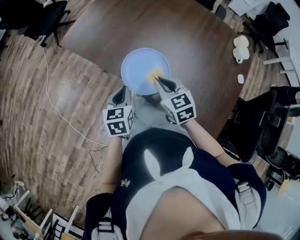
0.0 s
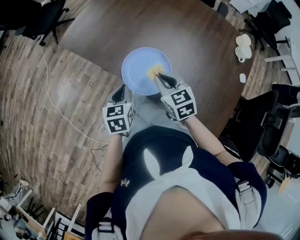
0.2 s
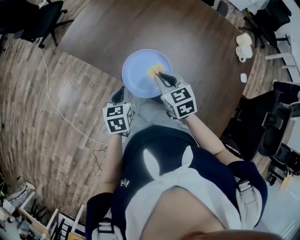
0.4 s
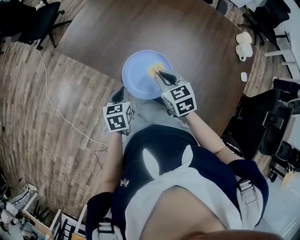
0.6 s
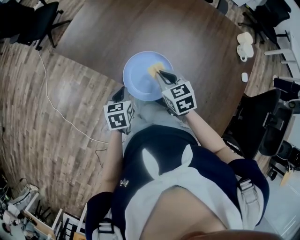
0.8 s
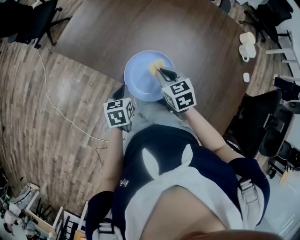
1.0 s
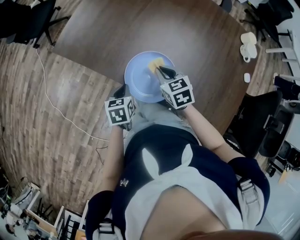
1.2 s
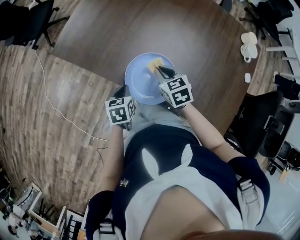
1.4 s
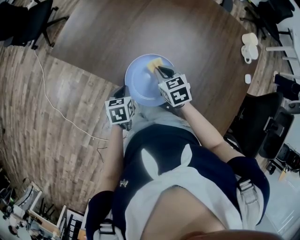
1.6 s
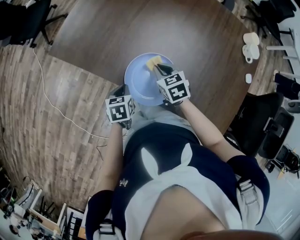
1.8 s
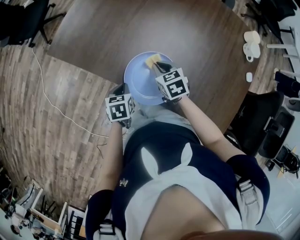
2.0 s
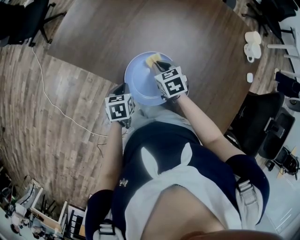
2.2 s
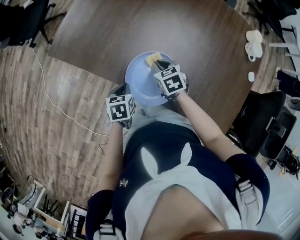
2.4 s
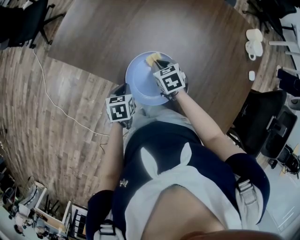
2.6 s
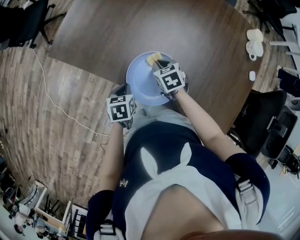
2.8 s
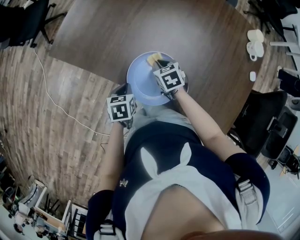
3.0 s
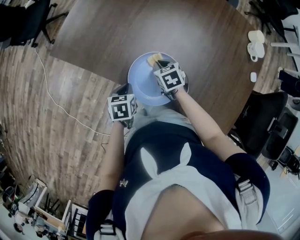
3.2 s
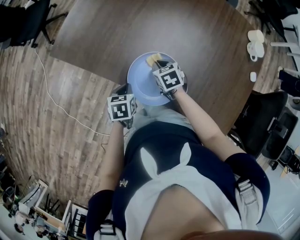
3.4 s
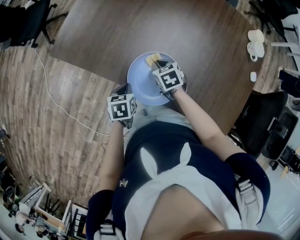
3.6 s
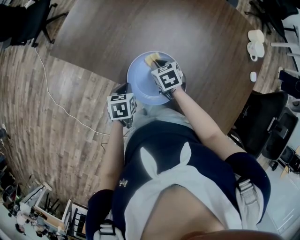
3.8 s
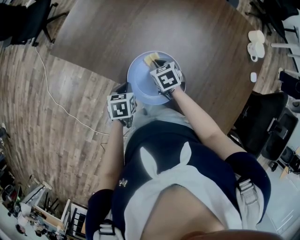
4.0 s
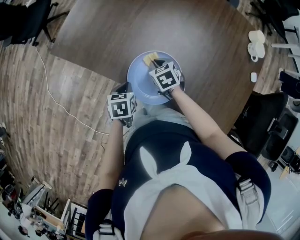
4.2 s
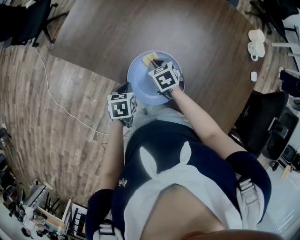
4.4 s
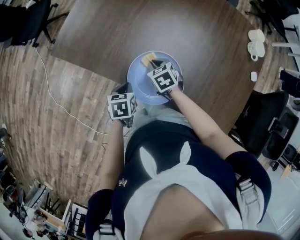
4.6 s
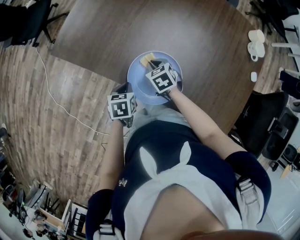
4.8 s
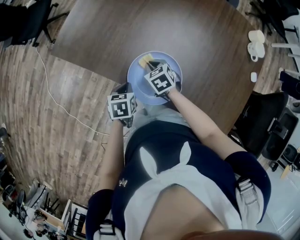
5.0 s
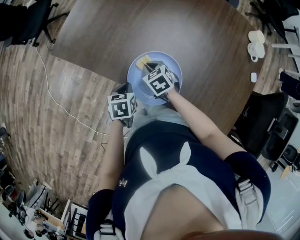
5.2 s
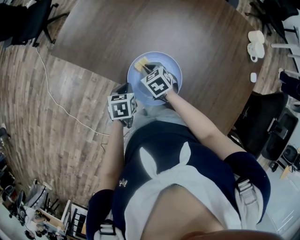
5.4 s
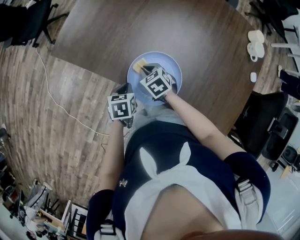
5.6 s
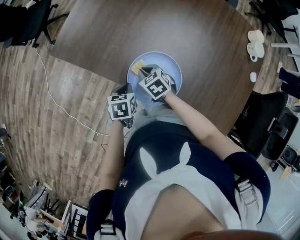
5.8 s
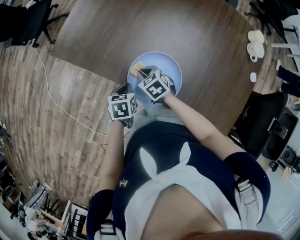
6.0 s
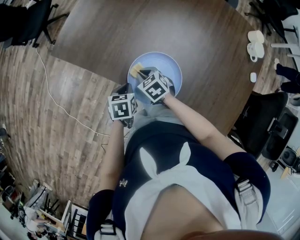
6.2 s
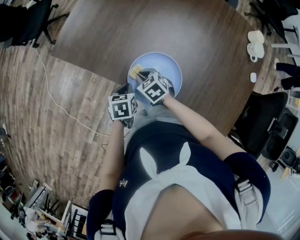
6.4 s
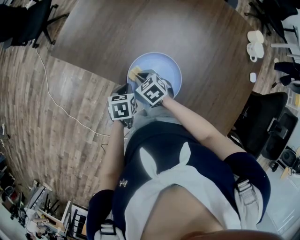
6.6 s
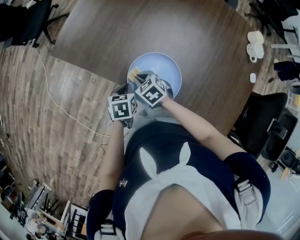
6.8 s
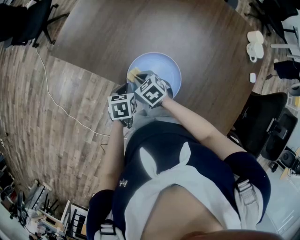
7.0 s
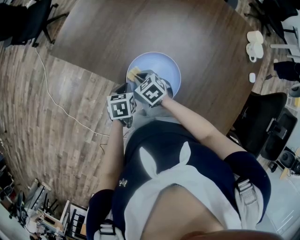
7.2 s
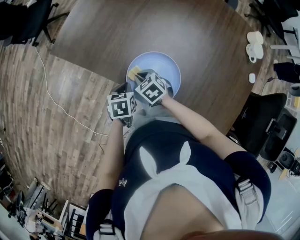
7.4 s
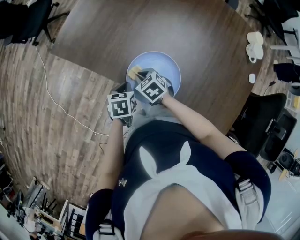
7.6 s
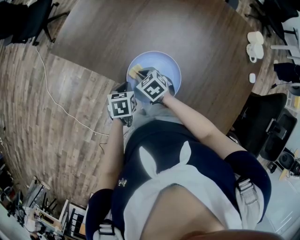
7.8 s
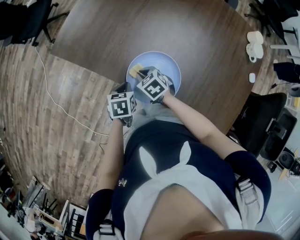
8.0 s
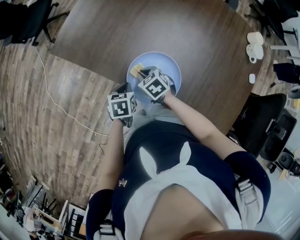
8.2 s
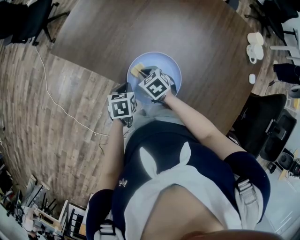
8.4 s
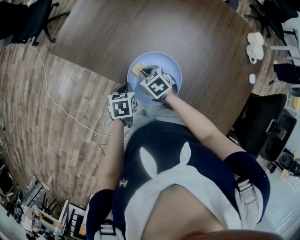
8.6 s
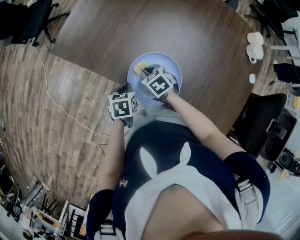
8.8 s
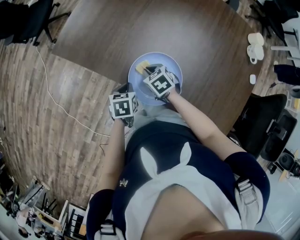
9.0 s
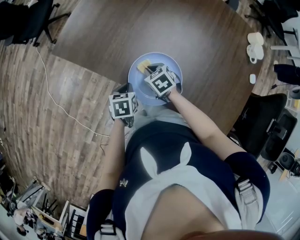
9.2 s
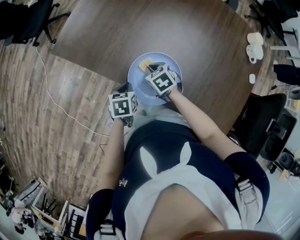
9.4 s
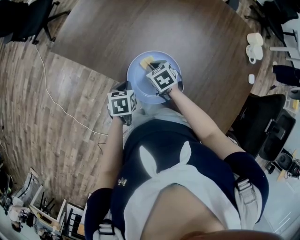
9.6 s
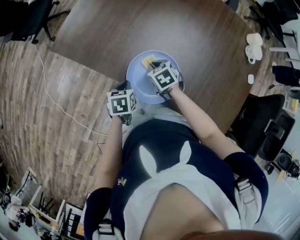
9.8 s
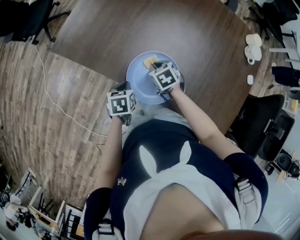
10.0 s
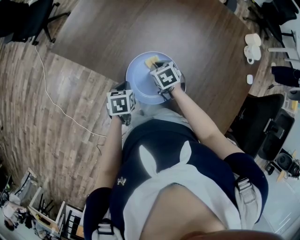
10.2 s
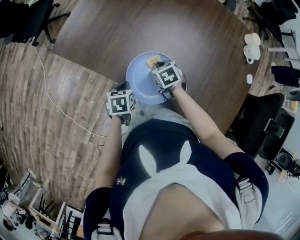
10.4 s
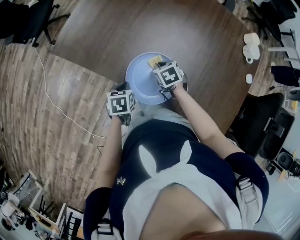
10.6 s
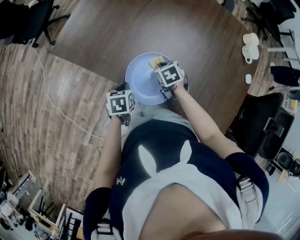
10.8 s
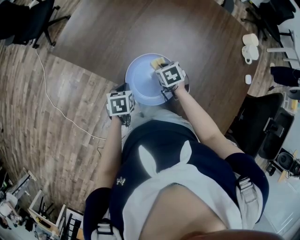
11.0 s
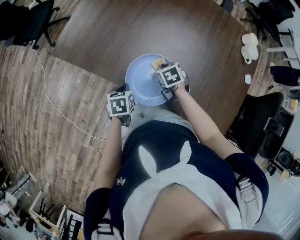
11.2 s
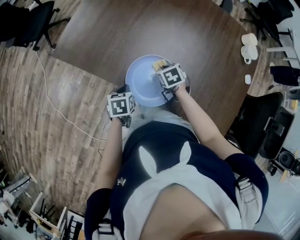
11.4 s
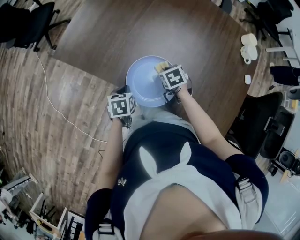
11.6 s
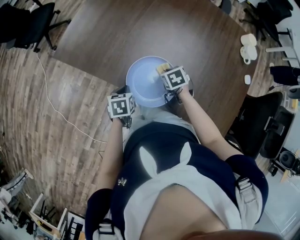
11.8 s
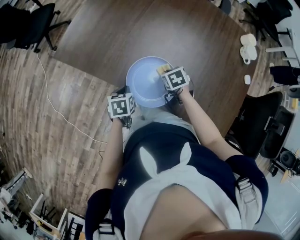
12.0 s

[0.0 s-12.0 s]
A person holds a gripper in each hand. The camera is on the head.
0.0 to 1.6 s: The right gripper moves forward and downward, approximately 15 cm. The left gripper heads downward and forward, covering some 15 cm.
1.6 to 3.0 s: The right gripper goes about 5 cm downward.
3.0 to 4.4 s: There are only small adjustments of the grippers.
4.4 to 6.0 s: The right gripper shifts roughly 5 cm to the left.
6.0 to 9.0 s: The grippers make only small movements.
9.0 to 10.4 s: The right gripper is displaced to the right by roughly 5 cm.
10.4 to 12.0 s: The right gripper moves to the right, about 5 cm.

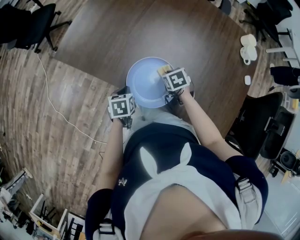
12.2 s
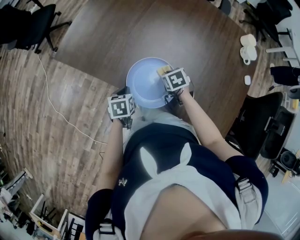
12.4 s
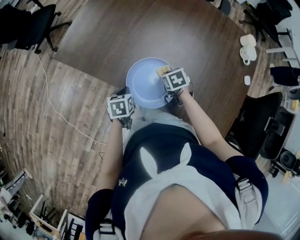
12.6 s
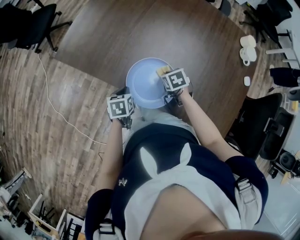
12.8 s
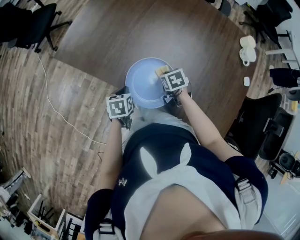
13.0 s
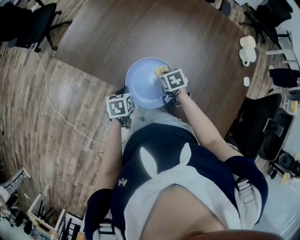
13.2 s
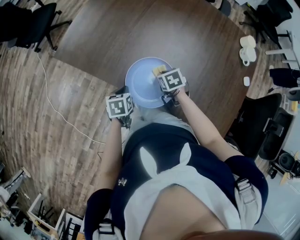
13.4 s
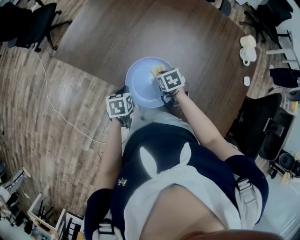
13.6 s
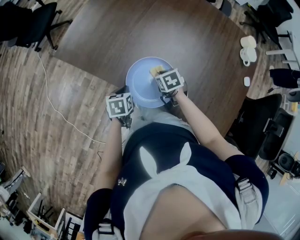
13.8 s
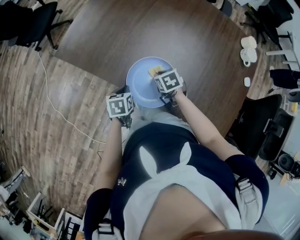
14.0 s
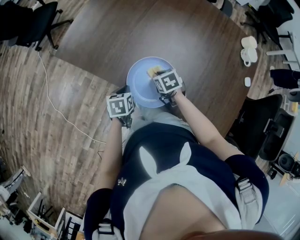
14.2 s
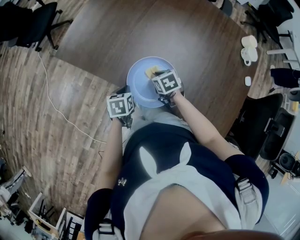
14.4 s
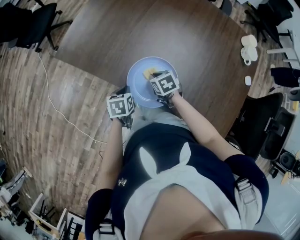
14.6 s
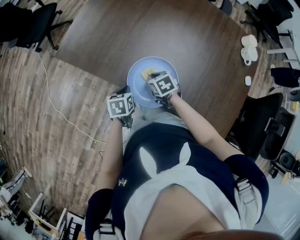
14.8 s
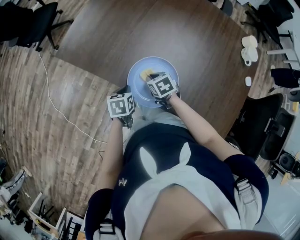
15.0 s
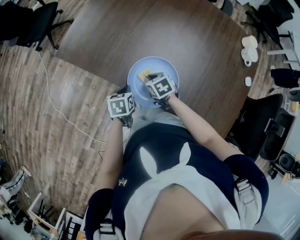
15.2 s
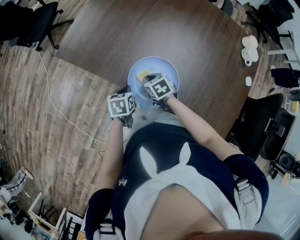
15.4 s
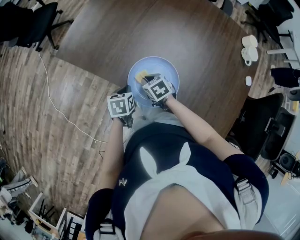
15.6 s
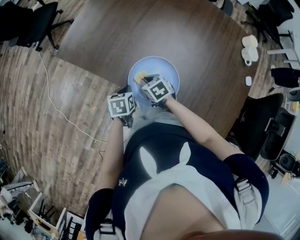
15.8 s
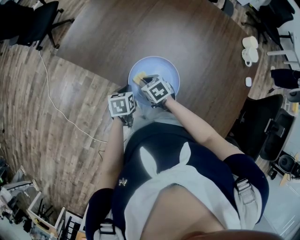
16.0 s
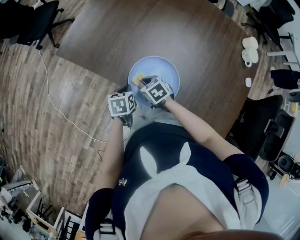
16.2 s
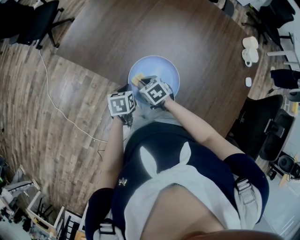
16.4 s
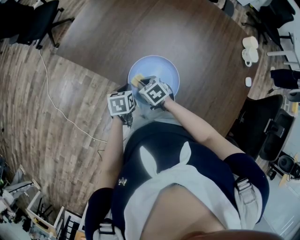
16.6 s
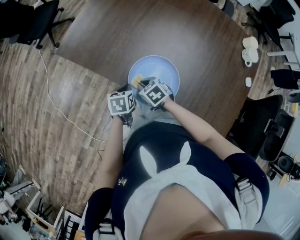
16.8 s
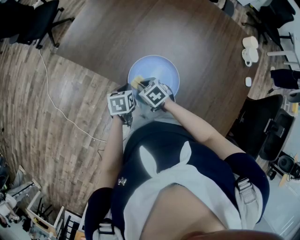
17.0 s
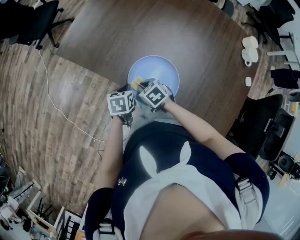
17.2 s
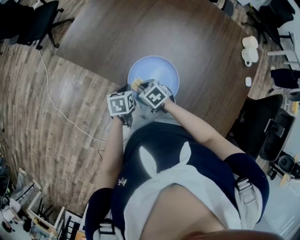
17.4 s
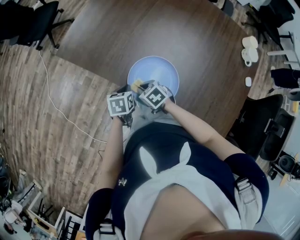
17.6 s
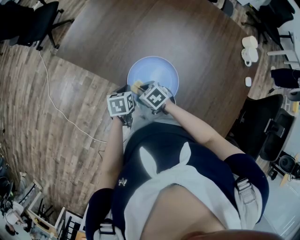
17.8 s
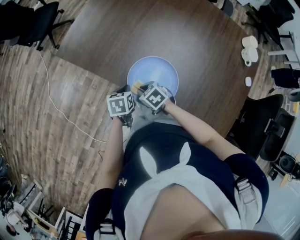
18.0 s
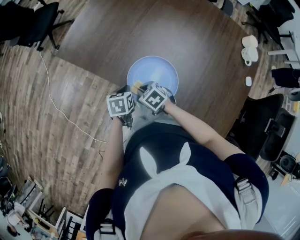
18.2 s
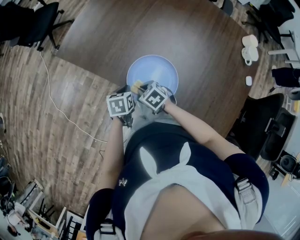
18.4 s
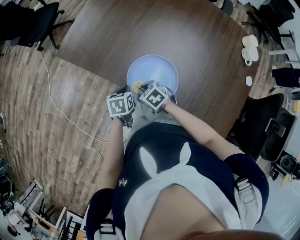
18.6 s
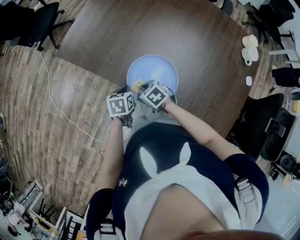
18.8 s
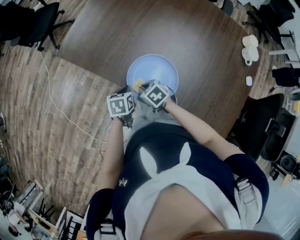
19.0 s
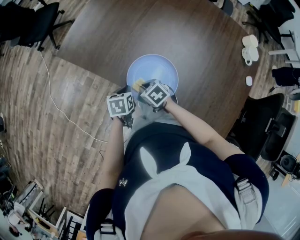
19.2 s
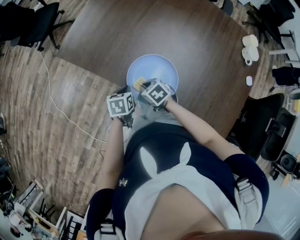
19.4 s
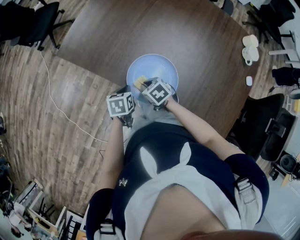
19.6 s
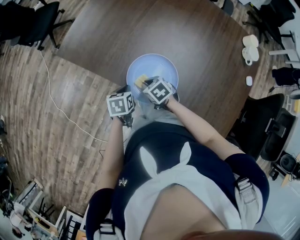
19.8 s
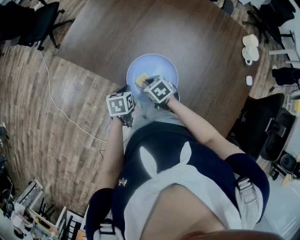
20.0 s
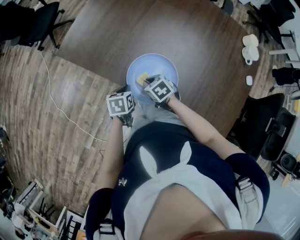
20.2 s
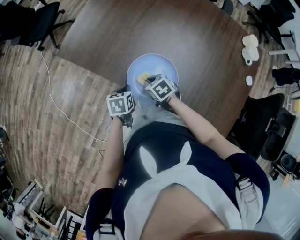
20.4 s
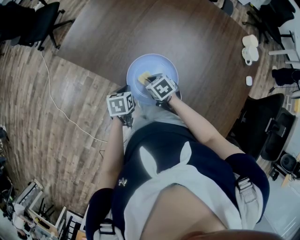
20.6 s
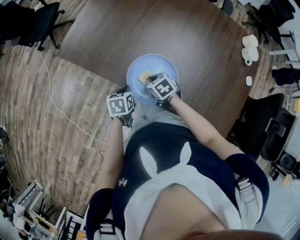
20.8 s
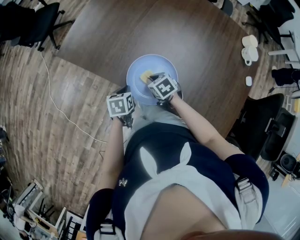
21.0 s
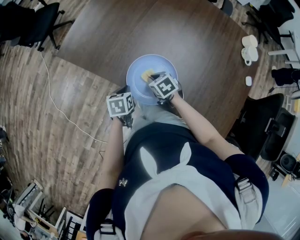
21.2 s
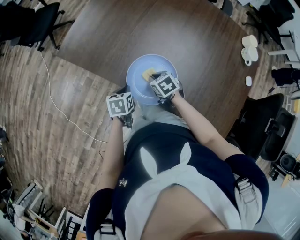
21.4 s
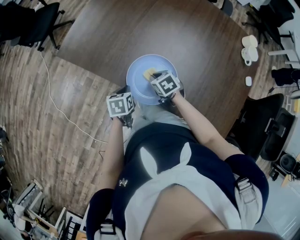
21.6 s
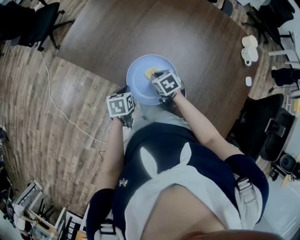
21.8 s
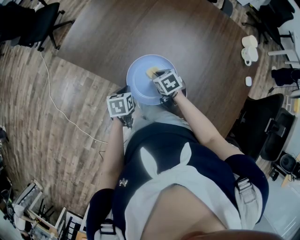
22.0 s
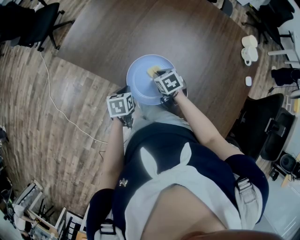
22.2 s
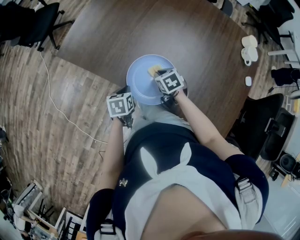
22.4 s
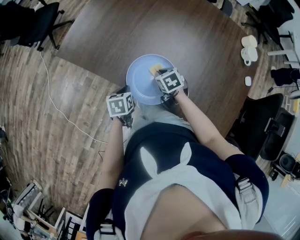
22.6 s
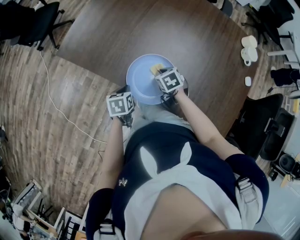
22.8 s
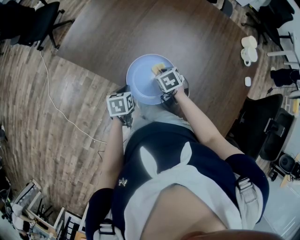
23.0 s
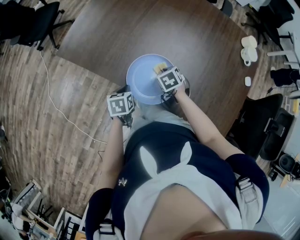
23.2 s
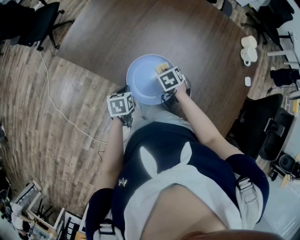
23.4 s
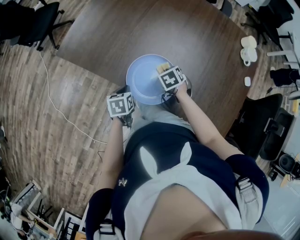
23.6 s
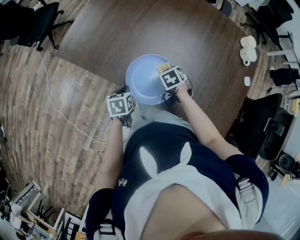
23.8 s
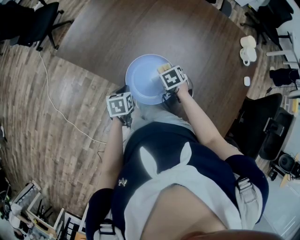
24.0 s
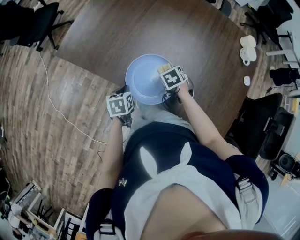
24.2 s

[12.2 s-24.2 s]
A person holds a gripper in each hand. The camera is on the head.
12.2 to 13.8 s: The grippers move only a little.
13.8 to 15.2 s: The right gripper shifts some 5 cm to the left.
15.2 to 16.6 s: The right gripper moves to the left, approximately 5 cm.
16.6 to 19.8 s: The grippers move only a little.
19.8 to 21.2 s: The grippers stay close to where they were, moving slightly.
21.2 to 22.6 s: The grippers move only a little.
22.6 to 24.2 s: The grippers move only a little.
